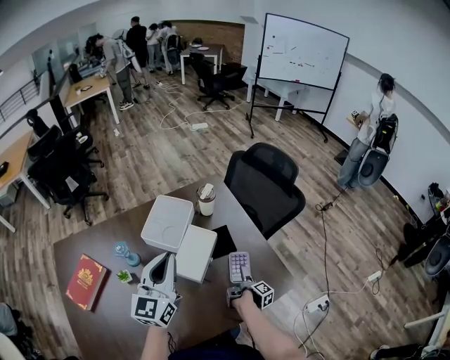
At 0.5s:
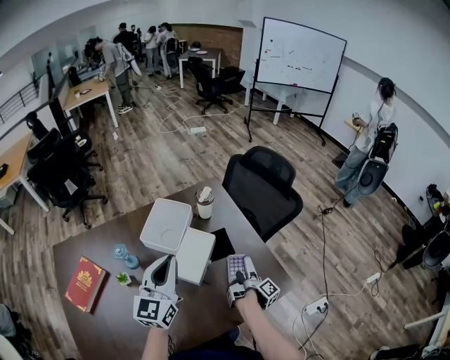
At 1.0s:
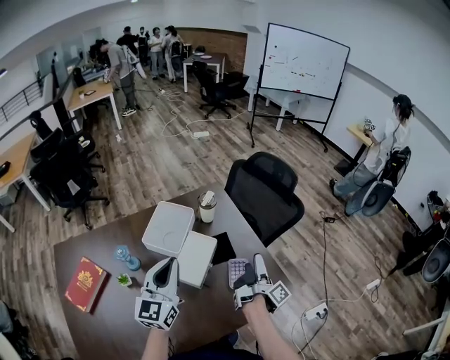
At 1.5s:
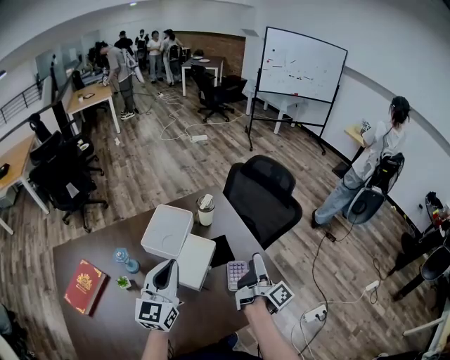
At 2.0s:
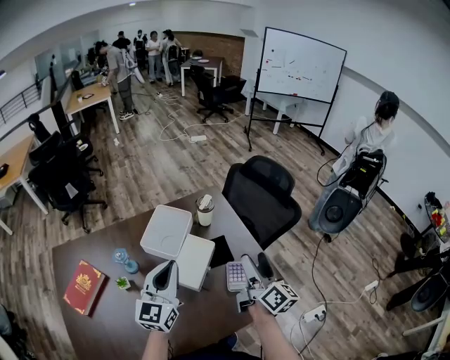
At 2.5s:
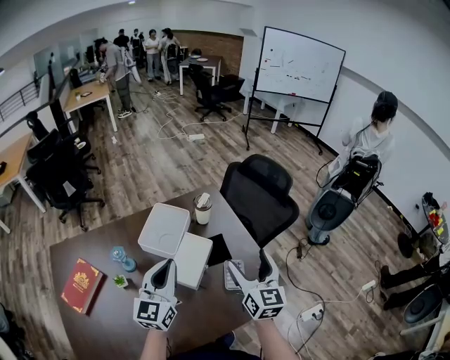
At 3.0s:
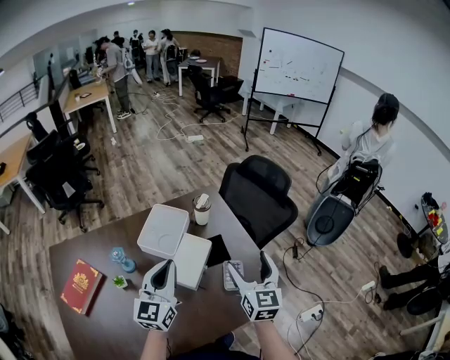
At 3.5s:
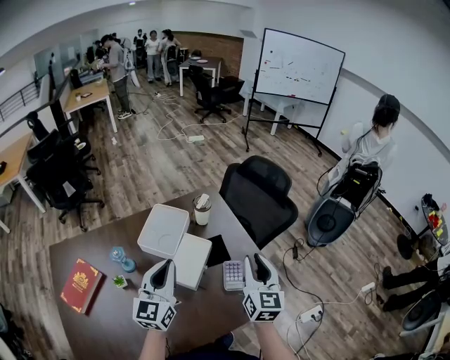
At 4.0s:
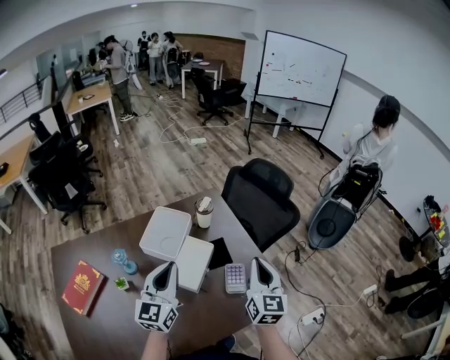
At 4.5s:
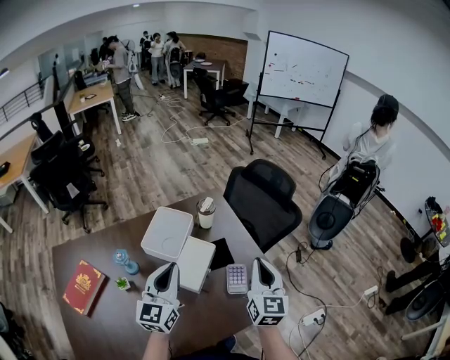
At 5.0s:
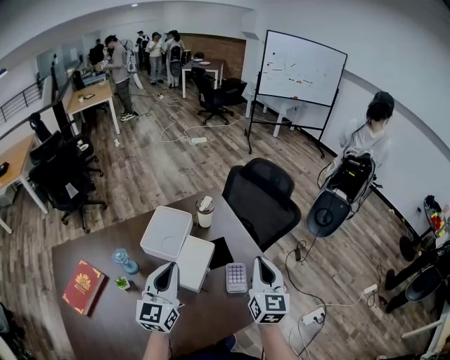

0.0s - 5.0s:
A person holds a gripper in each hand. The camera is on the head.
0.0s - 2.5s: The right gripper heads upward, covering roughly 35 cm, and rotates around the line of its fingers by some 100 degrees, counterclockwise from behind.
2.5s - 5.0s: The right gripper closes.

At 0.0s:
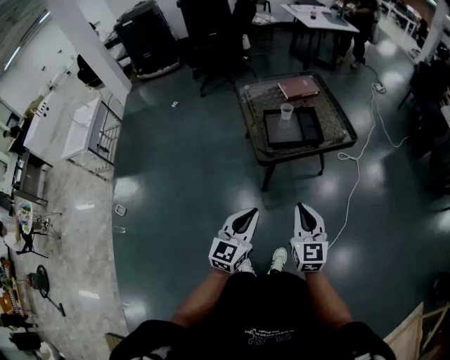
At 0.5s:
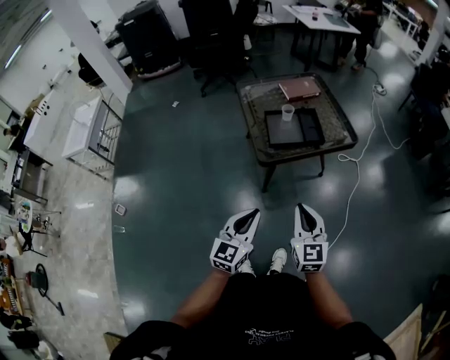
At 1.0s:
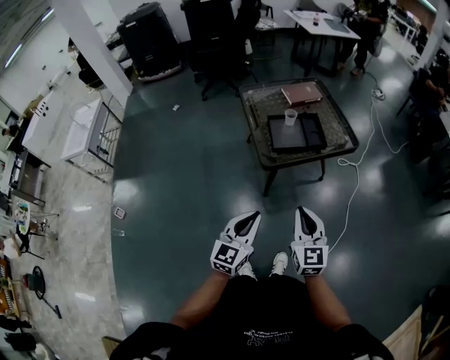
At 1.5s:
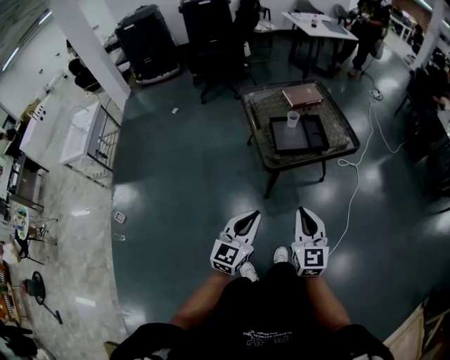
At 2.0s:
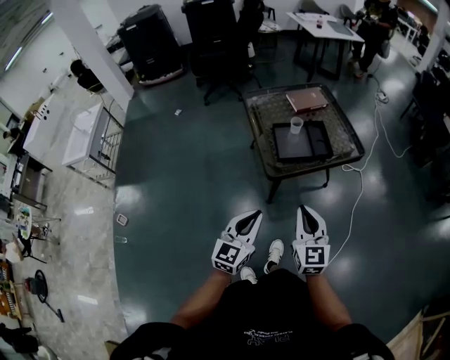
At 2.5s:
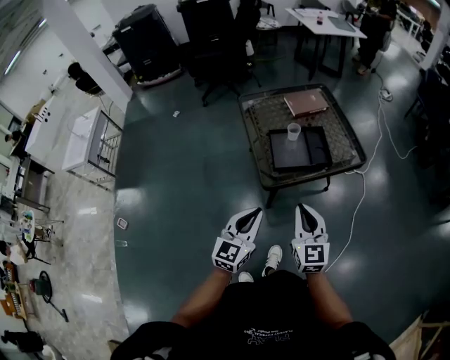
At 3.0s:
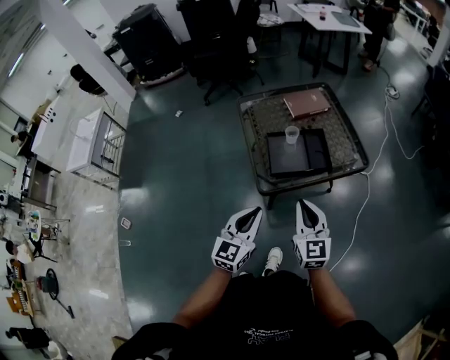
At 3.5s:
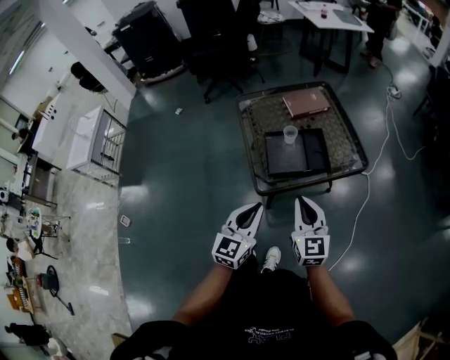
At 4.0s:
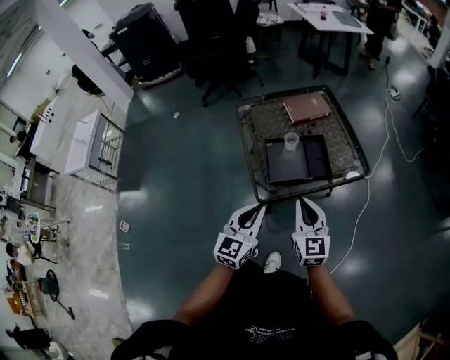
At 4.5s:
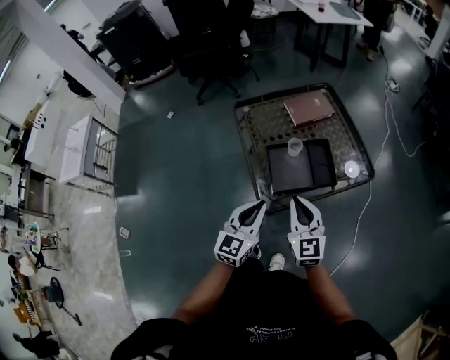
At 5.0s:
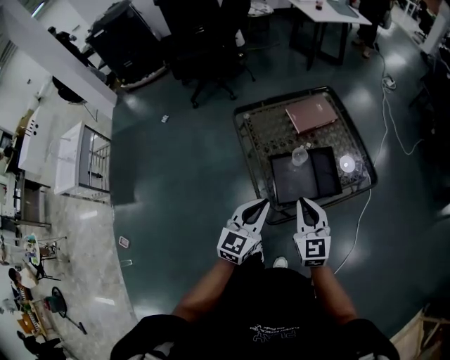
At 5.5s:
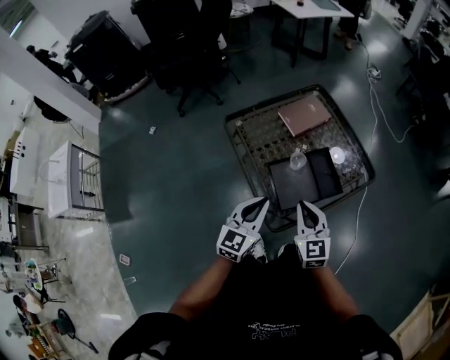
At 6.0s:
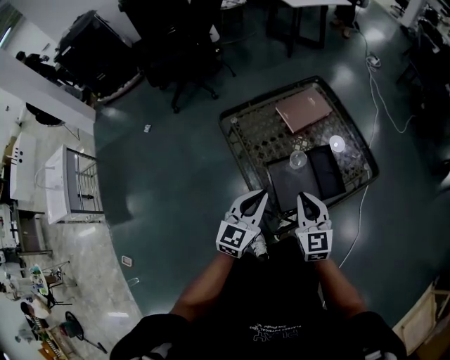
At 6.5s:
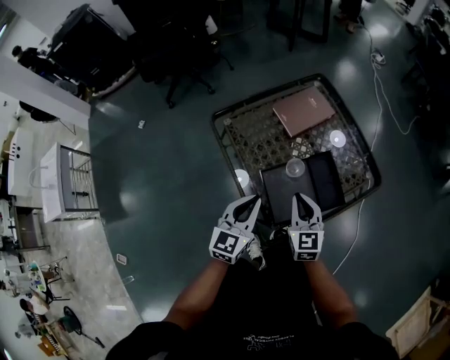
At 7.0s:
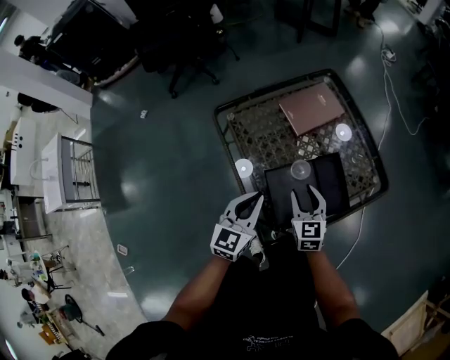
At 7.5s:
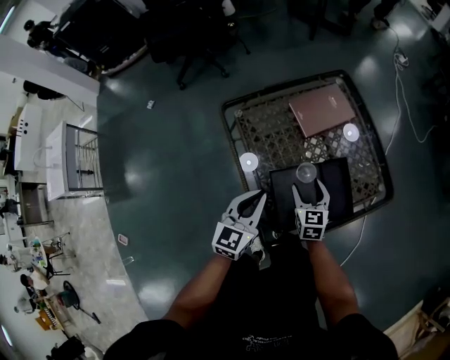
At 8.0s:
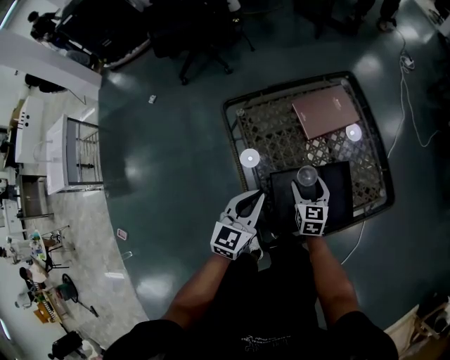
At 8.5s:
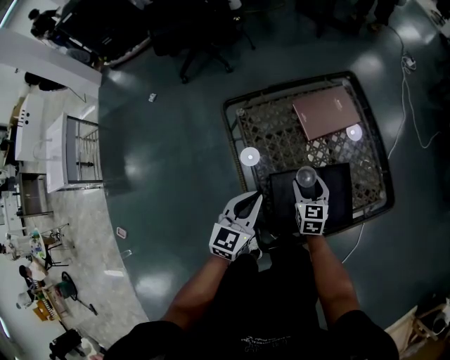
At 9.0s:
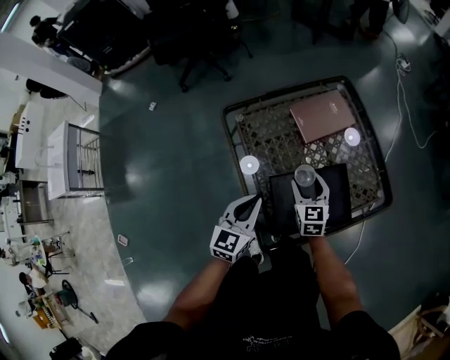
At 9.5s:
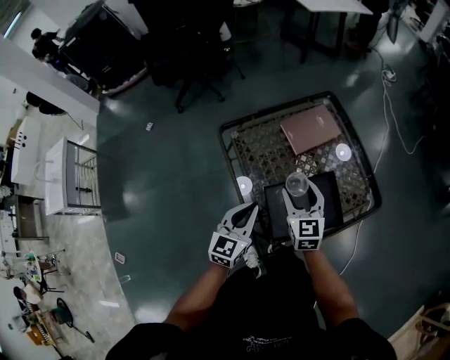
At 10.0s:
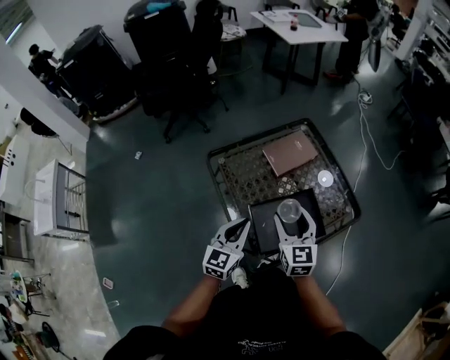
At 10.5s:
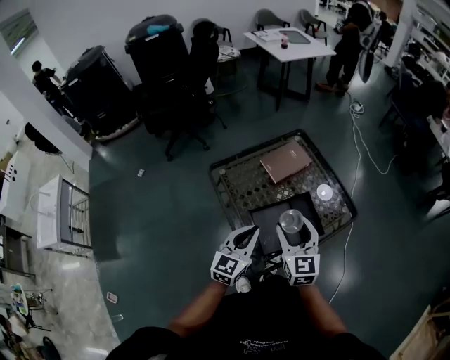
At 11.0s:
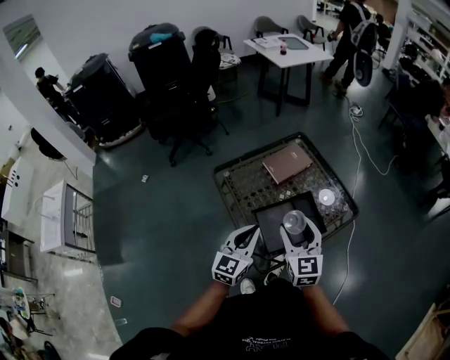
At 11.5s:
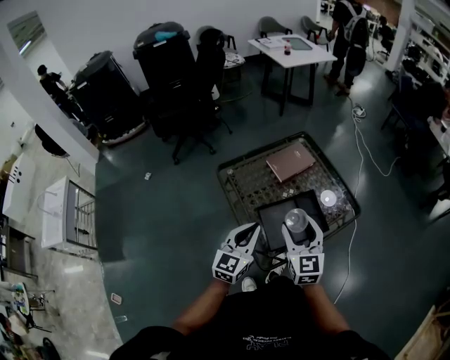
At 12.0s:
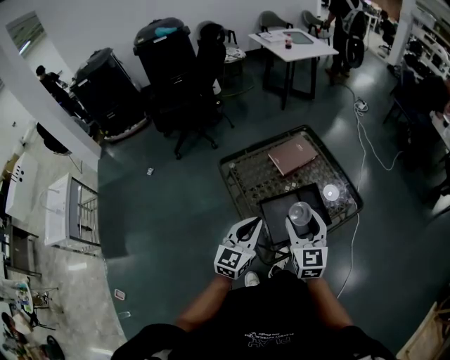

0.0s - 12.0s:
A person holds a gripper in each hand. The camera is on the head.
0.0s - 2.0s: The right gripper changes place by roughly 5 cm; the left gripper heads forward, covering some 5 cm.
2.0s - 4.0s: Both grippers move forward, about 20 cm.
4.0s - 6.0s: Both grippers travel together forward and to the left, roughly 20 cm.
6.0s - 8.0s: The right gripper travels downward and forward by about 25 cm, and opens up. Meanwhile the left gripper is displaced downward and forward by approximately 10 cm.
8.0s - 10.0s: The left gripper is displaced upward by some 5 cm. The right gripper travels upward by about 20 cm.
10.0s - 12.0s: The left gripper is displaced upward and backward by about 10 cm; the right gripper is displaced backward and upward by roughly 10 cm.

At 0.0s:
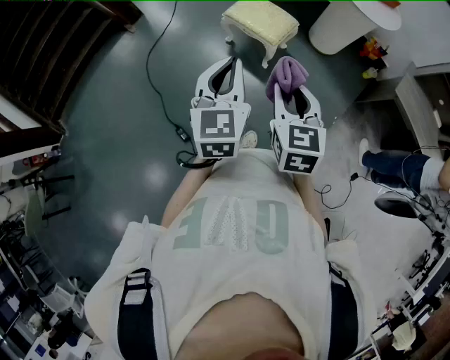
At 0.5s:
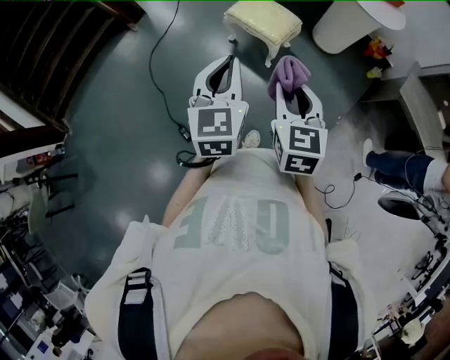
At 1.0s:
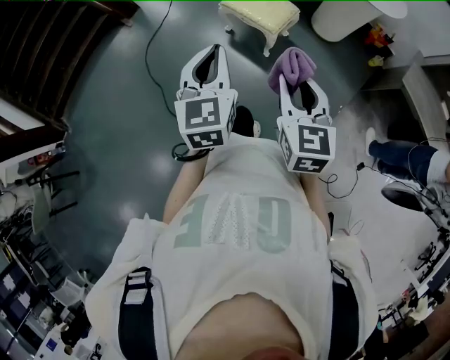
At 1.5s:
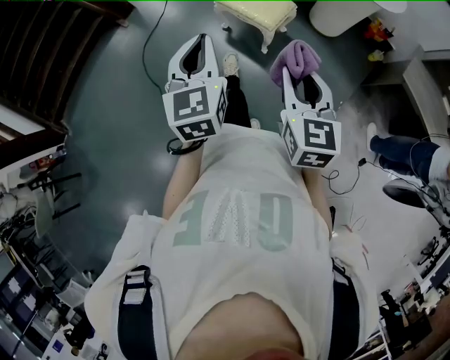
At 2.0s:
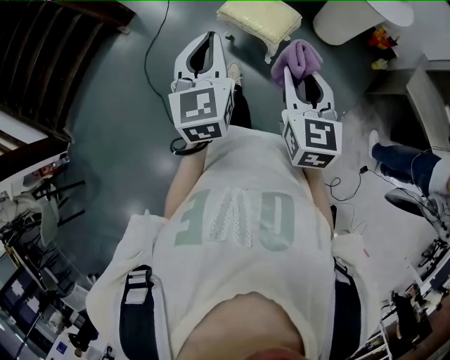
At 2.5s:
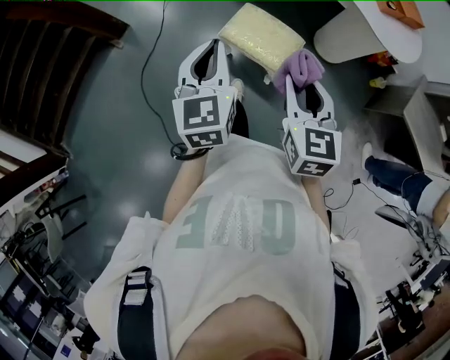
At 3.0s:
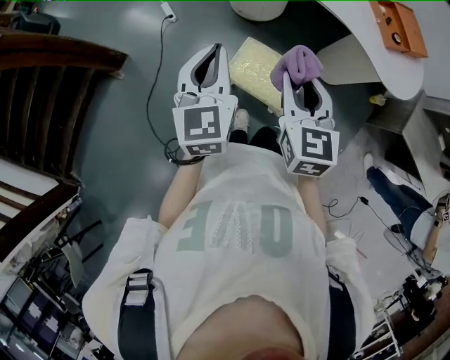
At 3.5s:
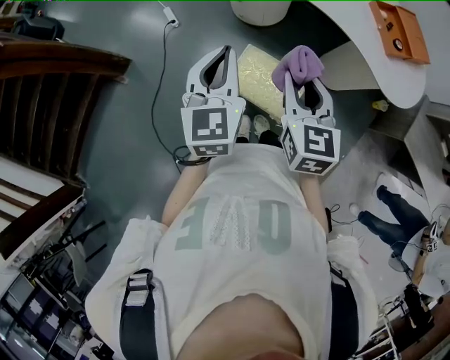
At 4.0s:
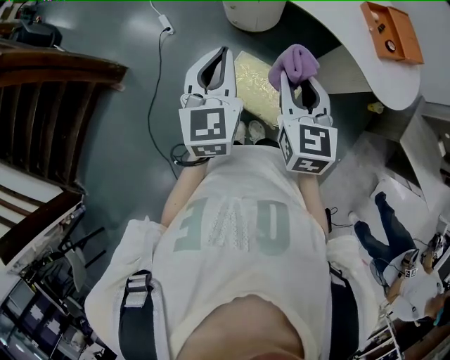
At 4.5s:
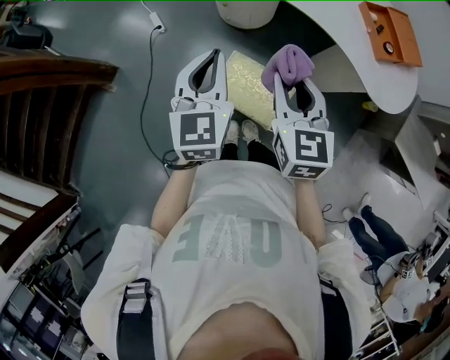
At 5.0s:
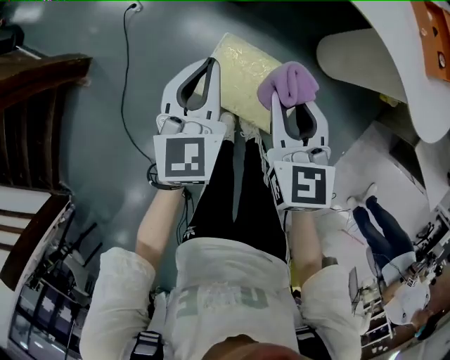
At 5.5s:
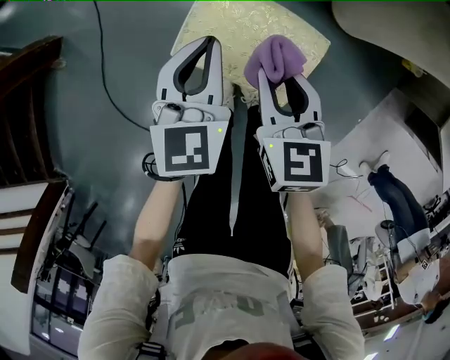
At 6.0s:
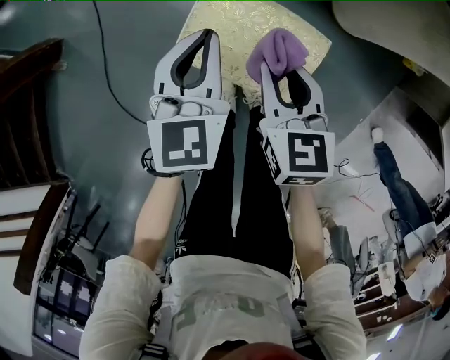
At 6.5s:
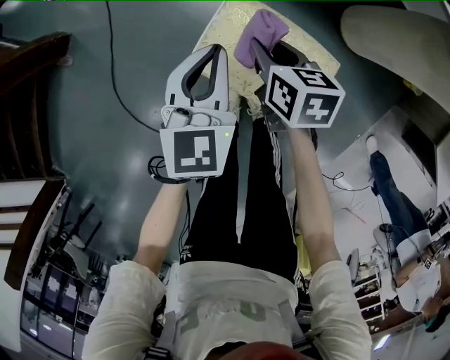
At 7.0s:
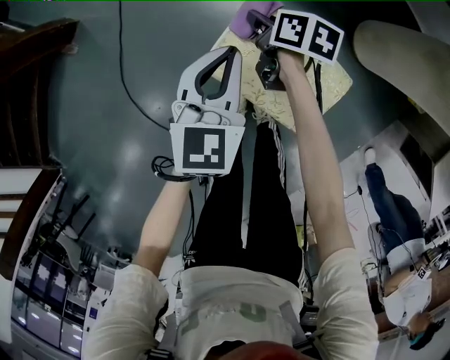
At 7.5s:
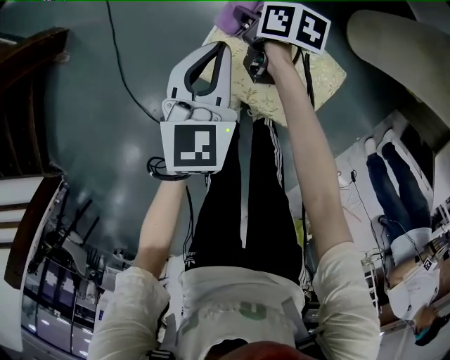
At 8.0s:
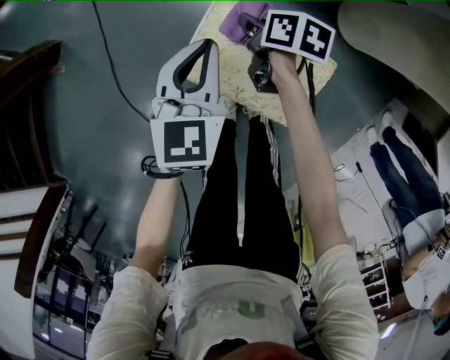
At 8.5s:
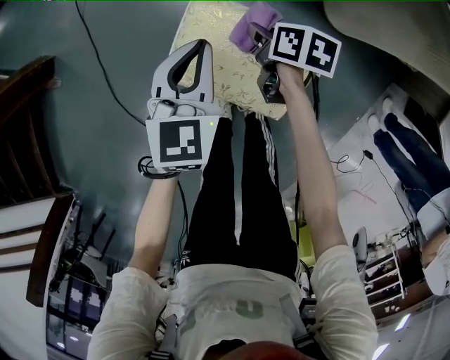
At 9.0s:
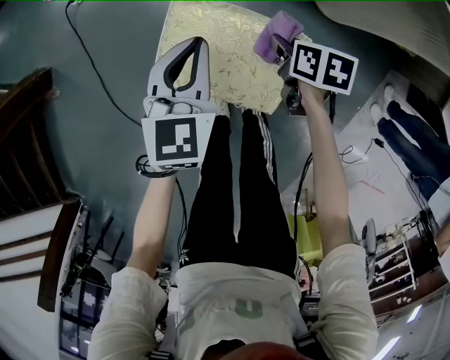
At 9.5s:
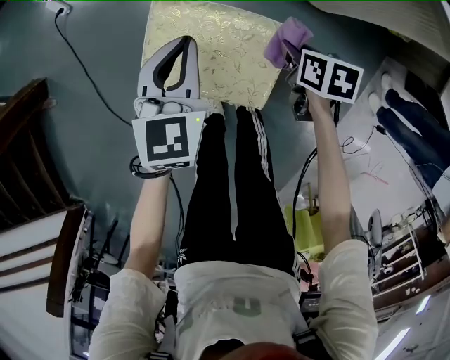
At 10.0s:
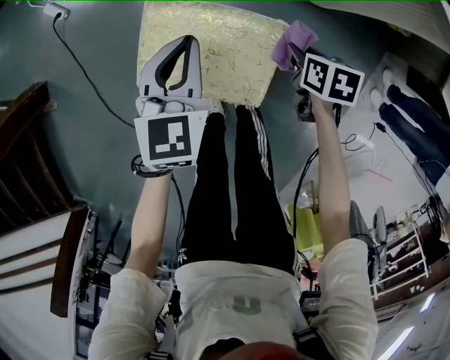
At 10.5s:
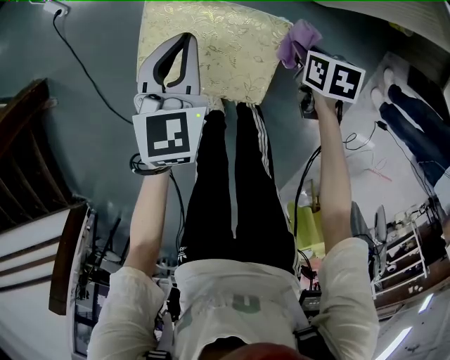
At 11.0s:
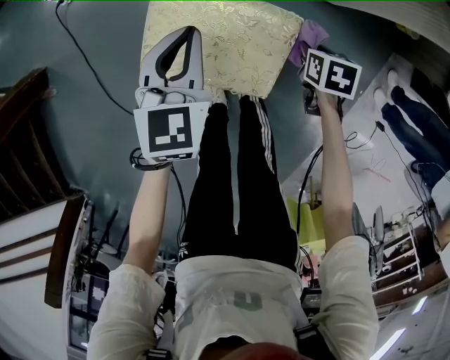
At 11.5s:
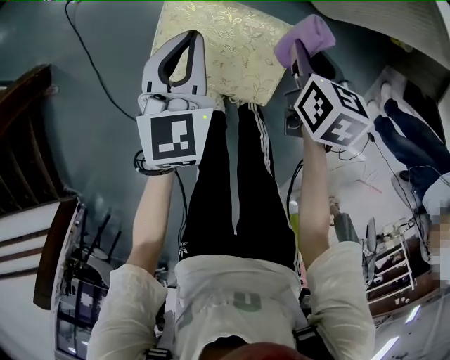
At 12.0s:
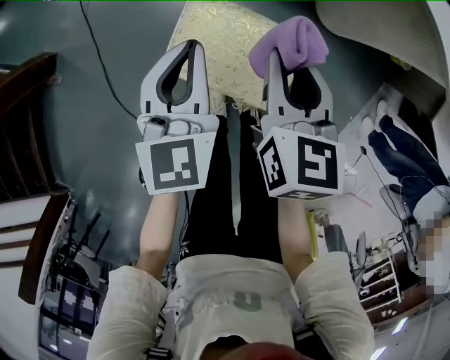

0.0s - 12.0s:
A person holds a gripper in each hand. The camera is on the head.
0.0s - 2.0s: The two grippers go some 10 cm forward.
2.0s - 4.0s: The two grippers travel together, forward, some 40 cm.
4.0s - 6.0s: Both grippers move downward, about 40 cm. The right gripper changes its angle by about 20 degrees.
6.0s - 8.0s: The right gripper is displaced downward and forward by approximately 20 cm, and swivels some 40 degrees. The left gripper shifts by approximately 5 cm.
8.0s - 10.0s: The left gripper goes approximately 10 cm to the right, while the right gripper is displaced to the right and backward by some 30 cm, and rotates roughly 20 degrees.
10.0s - 12.0s: The left gripper goes some 10 cm upward. Meanwhile the right gripper goes roughly 20 cm upward, and swivels approximately 40 degrees.
